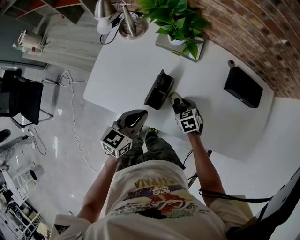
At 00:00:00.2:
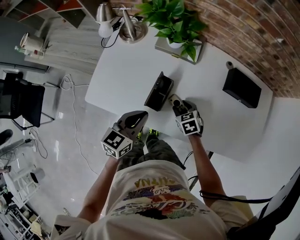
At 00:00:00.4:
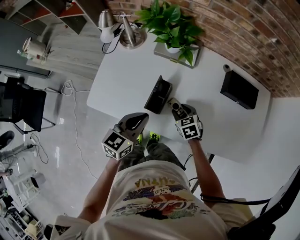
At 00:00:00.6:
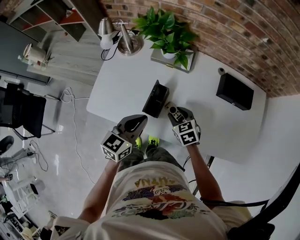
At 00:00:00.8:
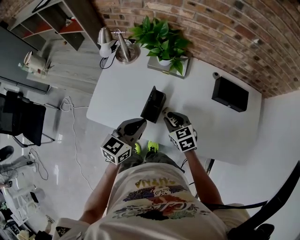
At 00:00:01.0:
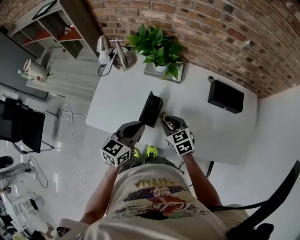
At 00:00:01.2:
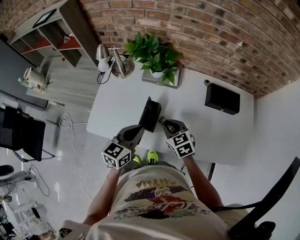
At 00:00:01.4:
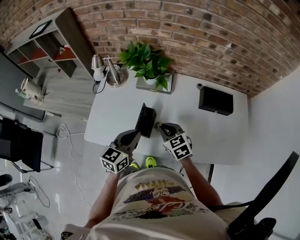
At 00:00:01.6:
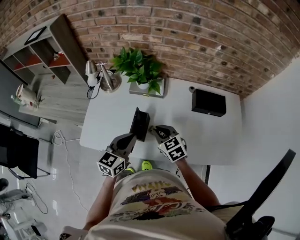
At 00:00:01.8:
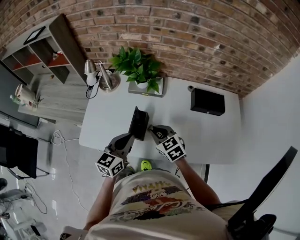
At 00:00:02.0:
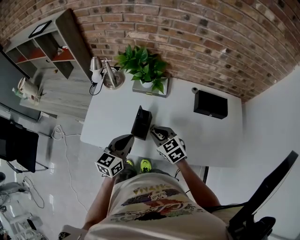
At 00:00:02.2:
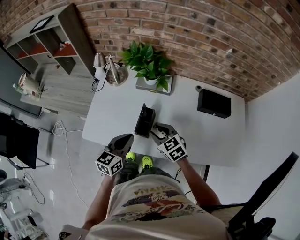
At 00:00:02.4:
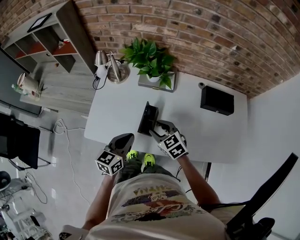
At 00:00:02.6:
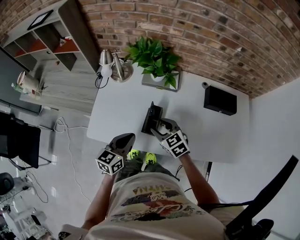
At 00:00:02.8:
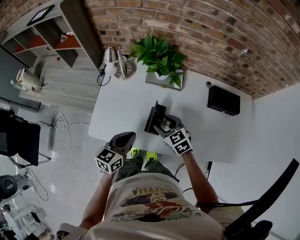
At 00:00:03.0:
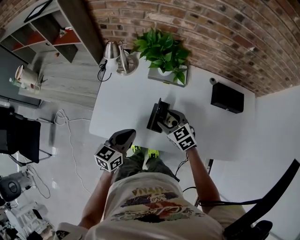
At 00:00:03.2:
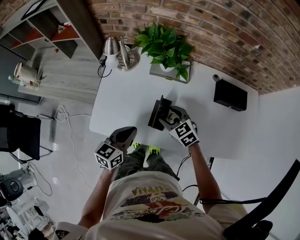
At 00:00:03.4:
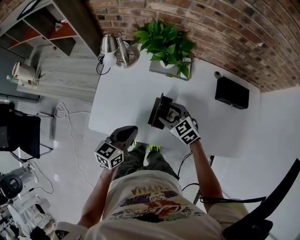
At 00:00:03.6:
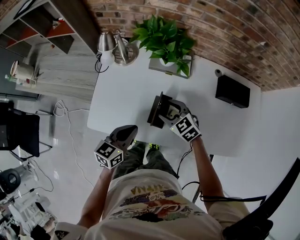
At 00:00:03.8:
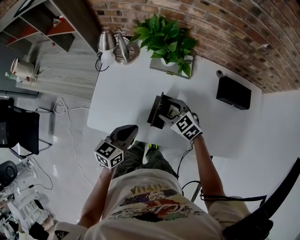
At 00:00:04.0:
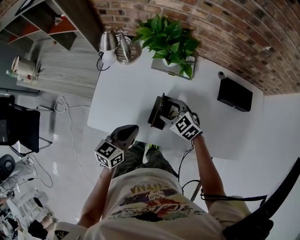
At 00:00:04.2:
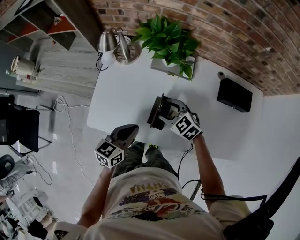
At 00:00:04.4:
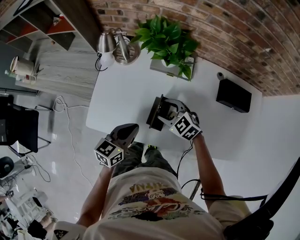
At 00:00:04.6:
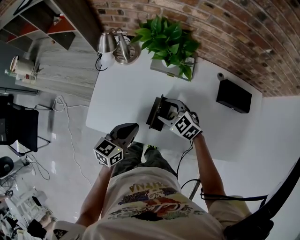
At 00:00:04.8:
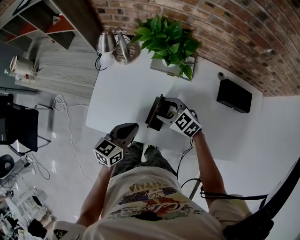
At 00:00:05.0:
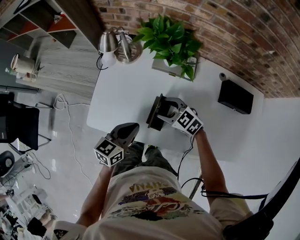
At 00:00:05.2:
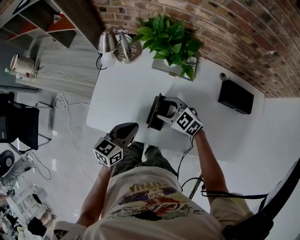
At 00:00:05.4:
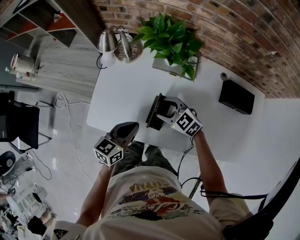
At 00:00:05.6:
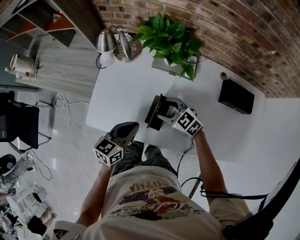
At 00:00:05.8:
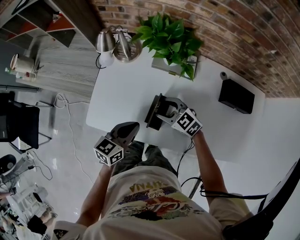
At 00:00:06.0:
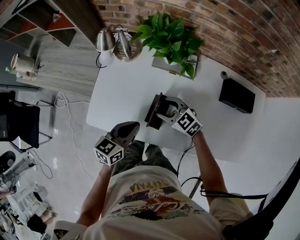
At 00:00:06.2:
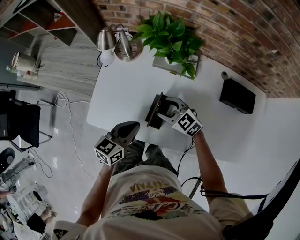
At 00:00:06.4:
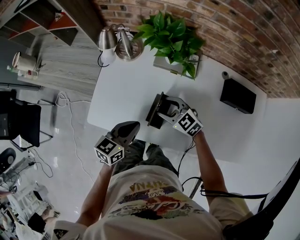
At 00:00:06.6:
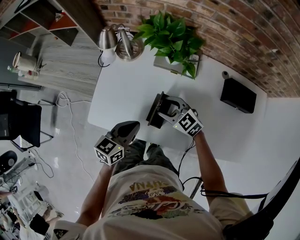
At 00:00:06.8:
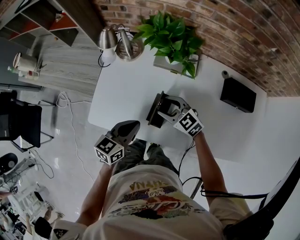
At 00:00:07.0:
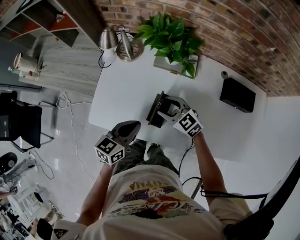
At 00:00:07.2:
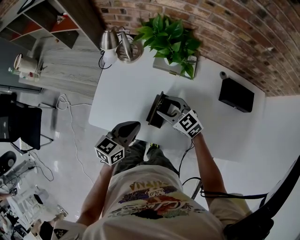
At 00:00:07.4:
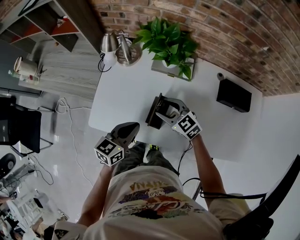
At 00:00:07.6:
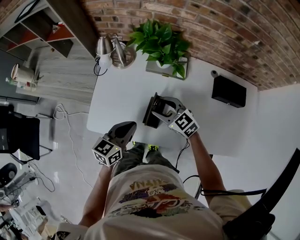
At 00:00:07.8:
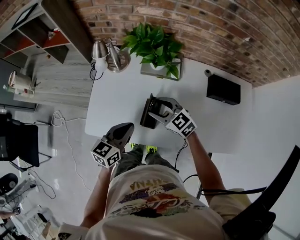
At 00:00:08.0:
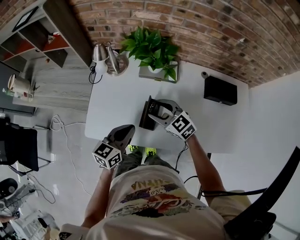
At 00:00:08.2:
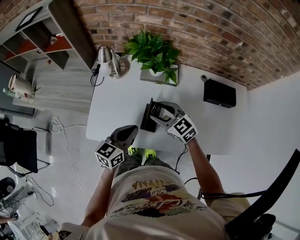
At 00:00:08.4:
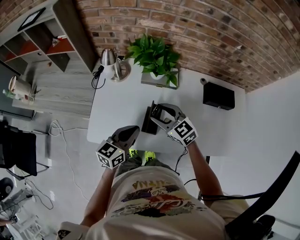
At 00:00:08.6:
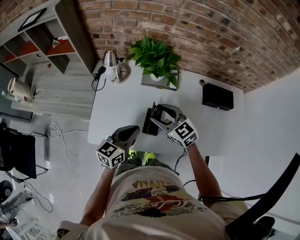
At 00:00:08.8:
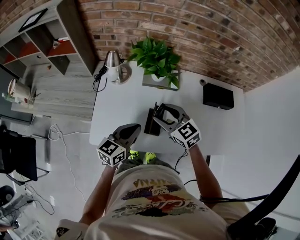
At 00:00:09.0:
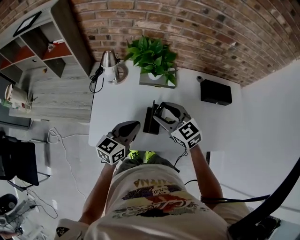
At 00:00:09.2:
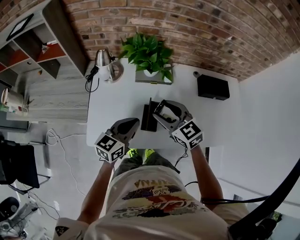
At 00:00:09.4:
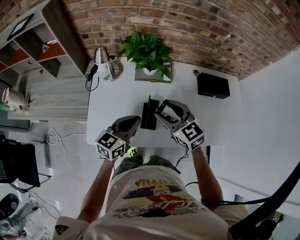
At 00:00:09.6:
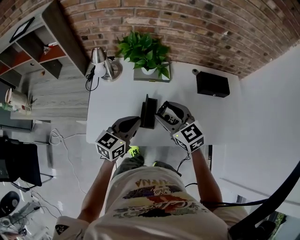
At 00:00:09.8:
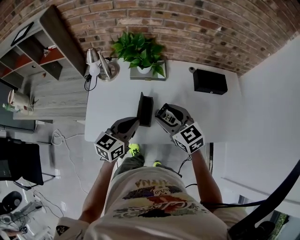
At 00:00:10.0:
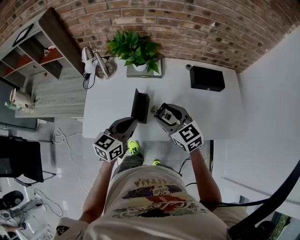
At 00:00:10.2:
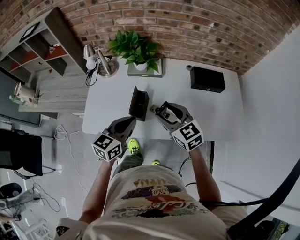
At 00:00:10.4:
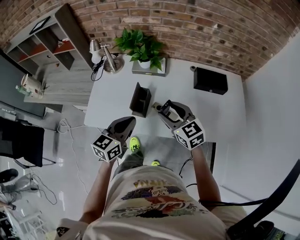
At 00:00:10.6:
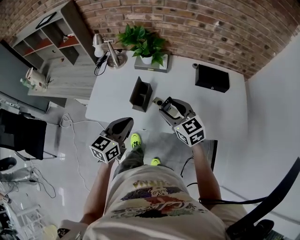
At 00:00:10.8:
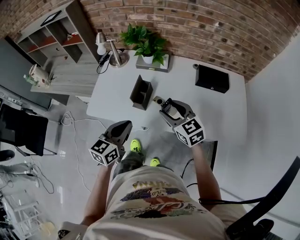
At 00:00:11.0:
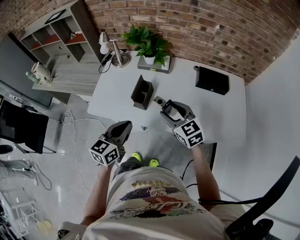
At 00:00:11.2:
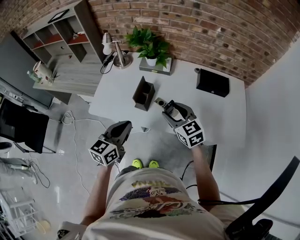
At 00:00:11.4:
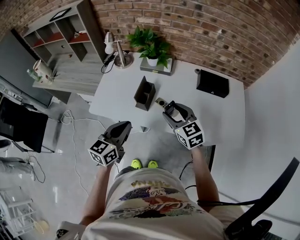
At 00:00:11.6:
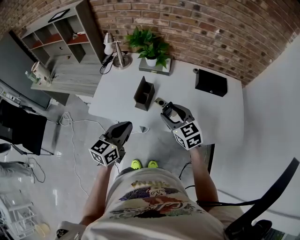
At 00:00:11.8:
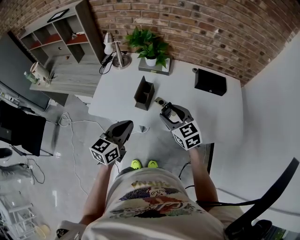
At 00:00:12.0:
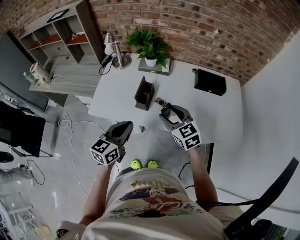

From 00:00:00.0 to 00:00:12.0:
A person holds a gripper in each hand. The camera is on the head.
From 00:00:00.0 to 00:00:01.6: The right gripper heads upward, covering roughly 15 cm, changes its angle by roughly 20 degrees, and closes; the left gripper is displaced upward by some 5 cm.
From 00:00:01.6 to 00:00:03.0: Both grippers move to the left, some 10 cm. The right gripper opens its fingers.
From 00:00:03.0 to 00:00:04.4: The right gripper changes its angle by roughly 20 degrees.
From 00:00:04.4 to 00:00:07.6: The grippers move only a little.
From 00:00:07.6 to 00:00:09.0: The right gripper moves upward, approximately 10 cm.
From 00:00:09.0 to 00:00:10.4: The right gripper travels to the right and backward by some 15 cm, while the left gripper heads backward and to the right, covering some 15 cm.
From 00:00:10.4 to 00:00:12.0: Both grippers travel together backward, approximately 10 cm.

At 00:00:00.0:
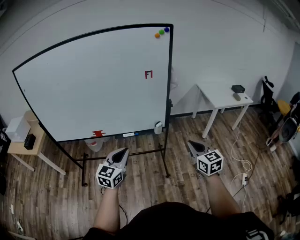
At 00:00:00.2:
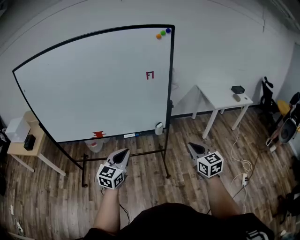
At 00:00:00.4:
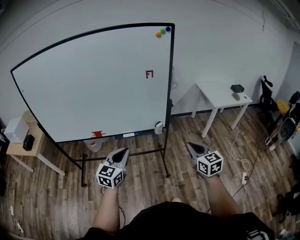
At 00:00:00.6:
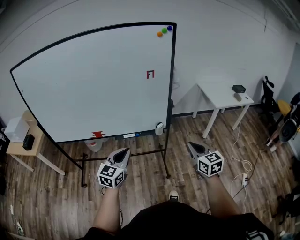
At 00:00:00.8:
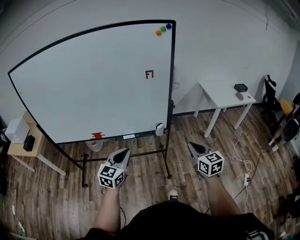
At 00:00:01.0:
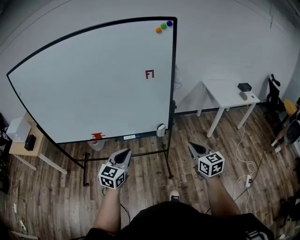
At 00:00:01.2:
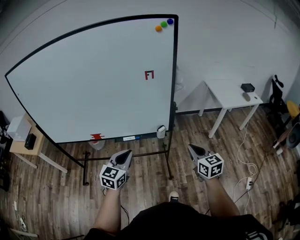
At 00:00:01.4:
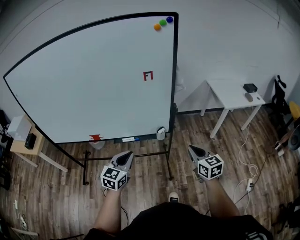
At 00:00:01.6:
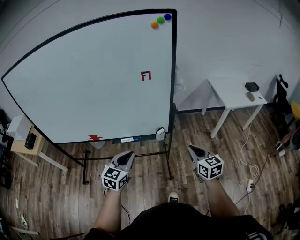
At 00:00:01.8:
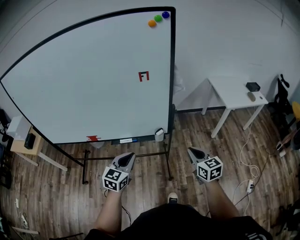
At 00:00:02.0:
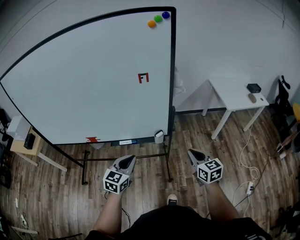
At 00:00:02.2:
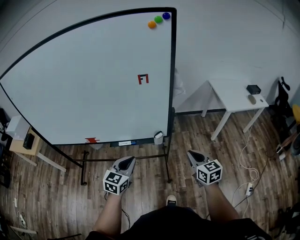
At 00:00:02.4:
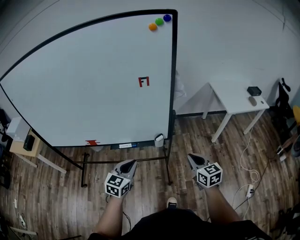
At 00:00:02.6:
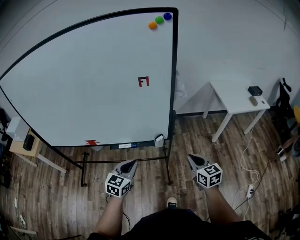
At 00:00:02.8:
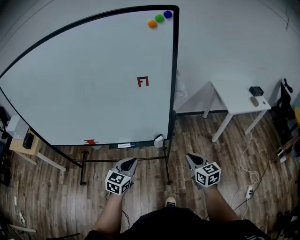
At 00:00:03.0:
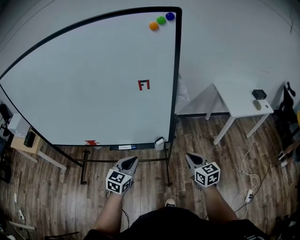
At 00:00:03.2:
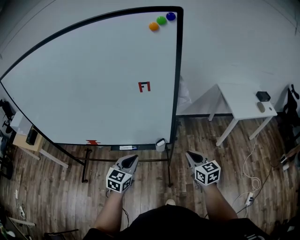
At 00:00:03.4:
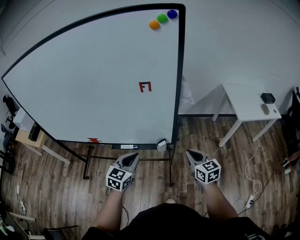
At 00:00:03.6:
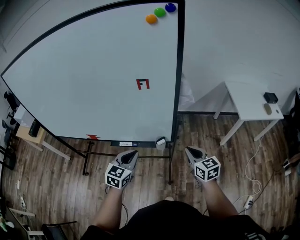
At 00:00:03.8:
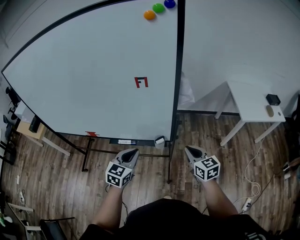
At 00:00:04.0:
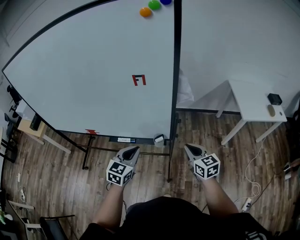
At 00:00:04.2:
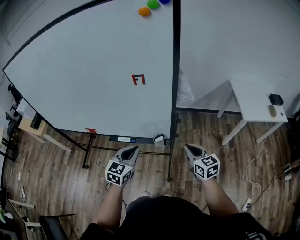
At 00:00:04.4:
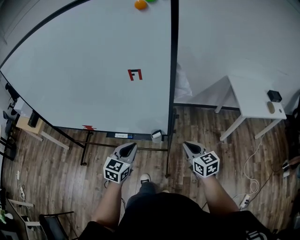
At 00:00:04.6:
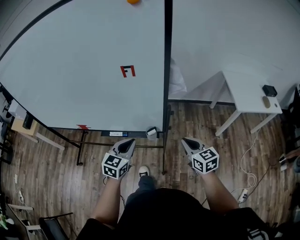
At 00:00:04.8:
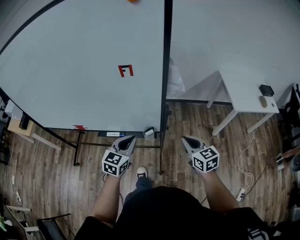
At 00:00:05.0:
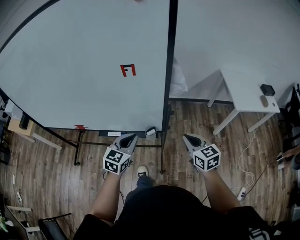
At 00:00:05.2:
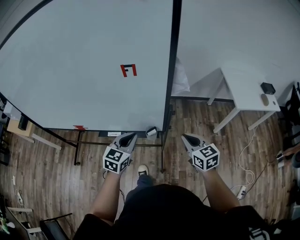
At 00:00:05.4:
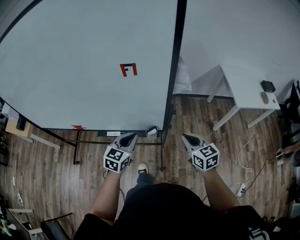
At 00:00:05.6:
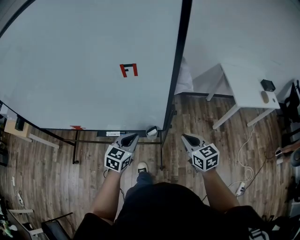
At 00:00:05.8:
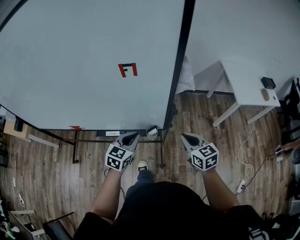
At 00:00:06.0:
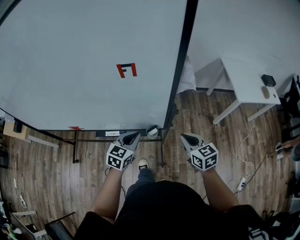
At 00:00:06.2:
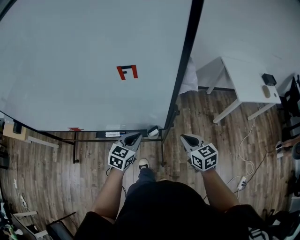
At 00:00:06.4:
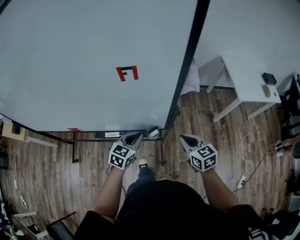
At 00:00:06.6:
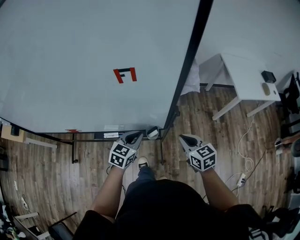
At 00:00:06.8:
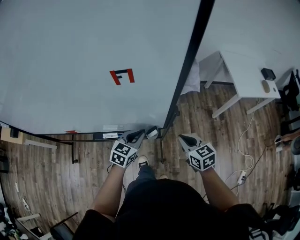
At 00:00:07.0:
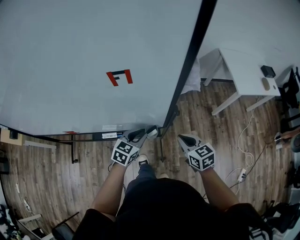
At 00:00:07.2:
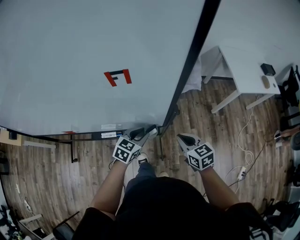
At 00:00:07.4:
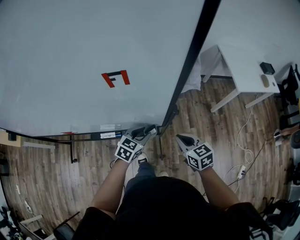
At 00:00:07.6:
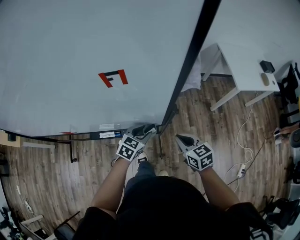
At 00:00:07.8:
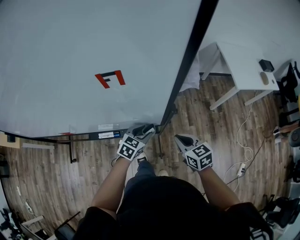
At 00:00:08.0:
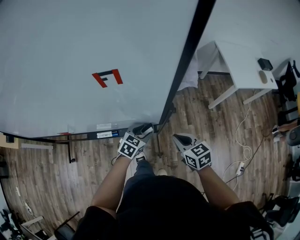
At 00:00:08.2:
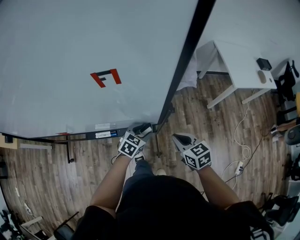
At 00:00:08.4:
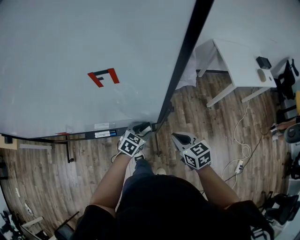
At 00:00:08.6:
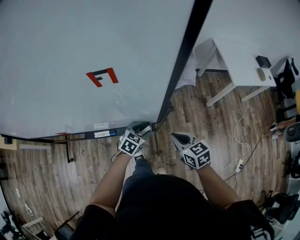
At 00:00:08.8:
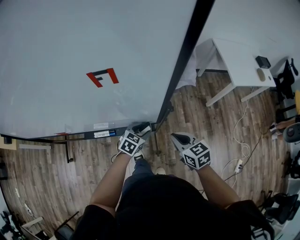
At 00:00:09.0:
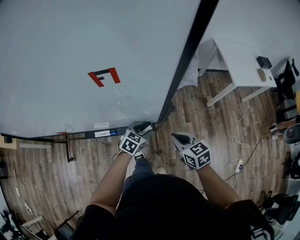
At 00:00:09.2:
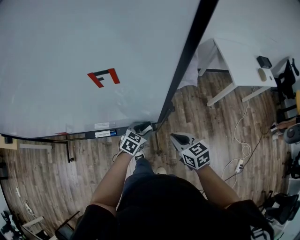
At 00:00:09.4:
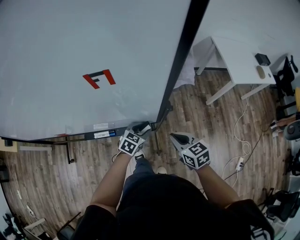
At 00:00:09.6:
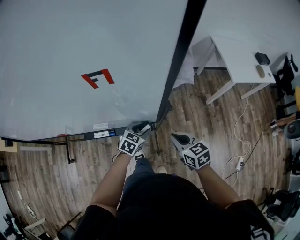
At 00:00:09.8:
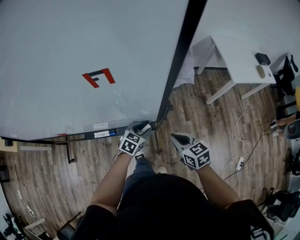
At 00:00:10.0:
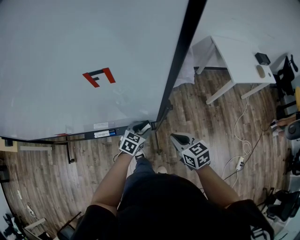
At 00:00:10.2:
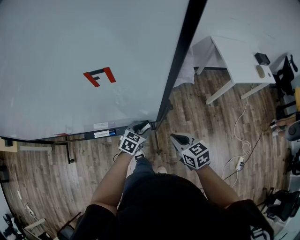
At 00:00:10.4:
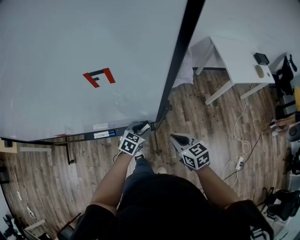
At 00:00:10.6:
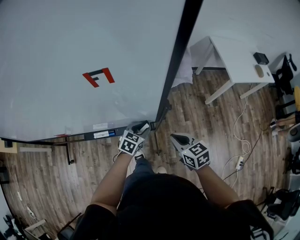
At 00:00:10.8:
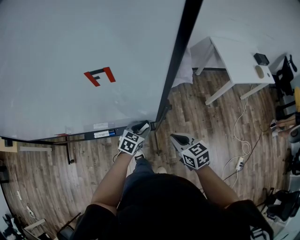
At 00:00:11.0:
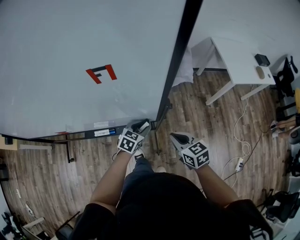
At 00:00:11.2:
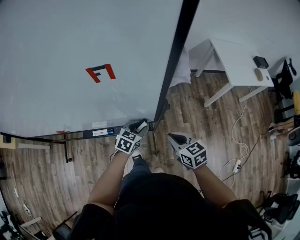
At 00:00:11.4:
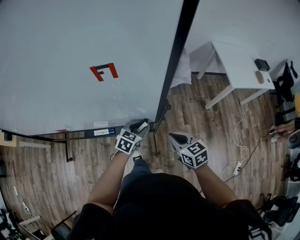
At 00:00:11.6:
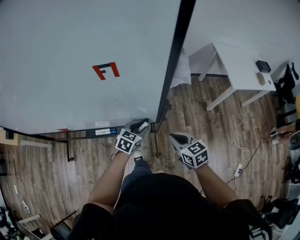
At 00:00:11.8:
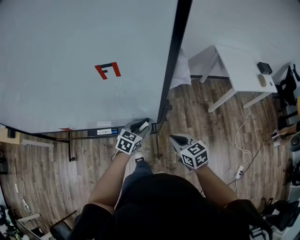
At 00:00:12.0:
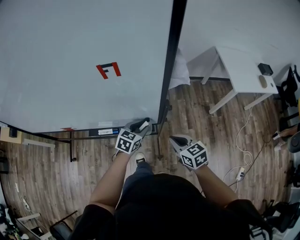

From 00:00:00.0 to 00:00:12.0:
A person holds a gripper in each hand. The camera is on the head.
From 00:00:00.0 to 00:00:01.6: The two grippers go approximately 15 cm forward and downward.
From 00:00:01.6 to 00:00:03.0: The grippers both shift forward by some 10 cm.
From 00:00:03.0 to 00:00:04.4: The two grippers go roughly 5 cm forward.
From 00:00:04.4 to 00:00:06.0: The right gripper travels forward by some 5 cm. Meanwhile the left gripper shifts approximately 10 cm forward and downward.
From 00:00:06.0 to 00:00:07.6: The right gripper shifts about 5 cm downward, while the left gripper heads downward, forward and to the right, covering about 10 cm, and opens its fingers.
From 00:00:07.6 to 00:00:09.0: The left gripper goes some 5 cm downward.
From 00:00:09.0 to 00:00:10.4: The two grippers keep their place.
From 00:00:10.4 to 00:00:12.0: The left gripper moves upward, some 5 cm.
